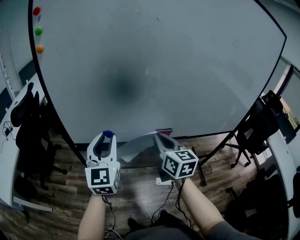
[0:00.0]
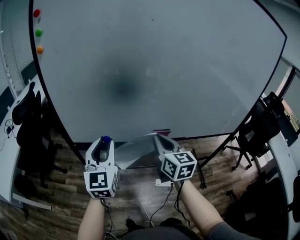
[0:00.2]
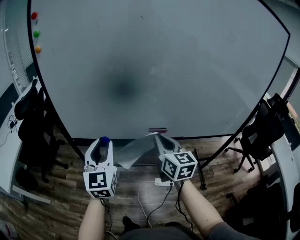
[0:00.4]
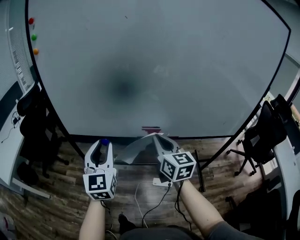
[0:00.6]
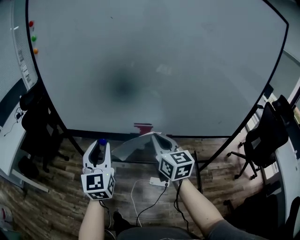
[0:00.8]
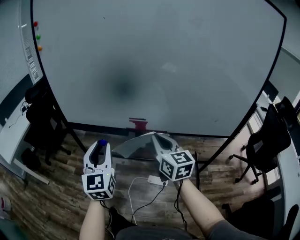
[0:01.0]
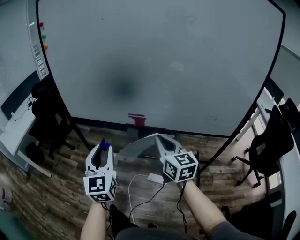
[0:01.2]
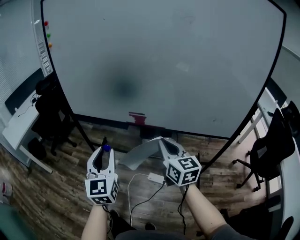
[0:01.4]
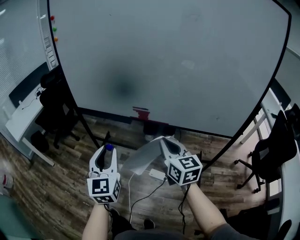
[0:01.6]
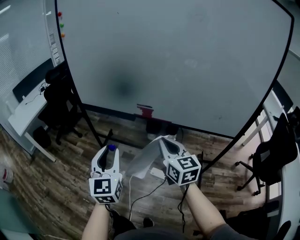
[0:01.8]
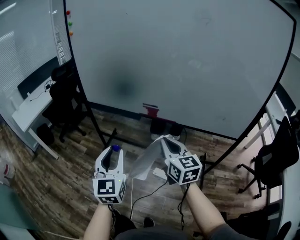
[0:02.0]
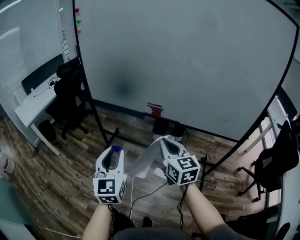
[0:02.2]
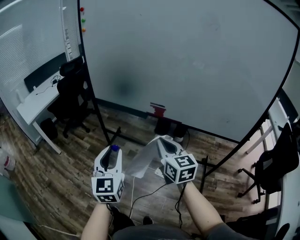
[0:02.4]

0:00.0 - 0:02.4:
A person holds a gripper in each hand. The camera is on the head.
0:00.0 - 0:01.2: The left gripper goes approximately 25 cm backward and to the right. Meanwhile the right gripper goes about 25 cm to the right and backward.
0:01.2 - 0:02.4: The left gripper shifts some 10 cm backward. Meanwhile the right gripper shifts approximately 10 cm backward and to the left.

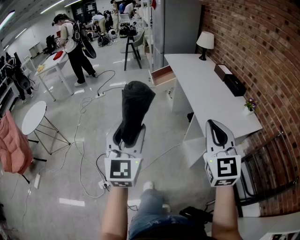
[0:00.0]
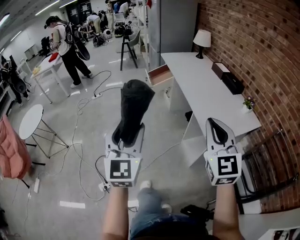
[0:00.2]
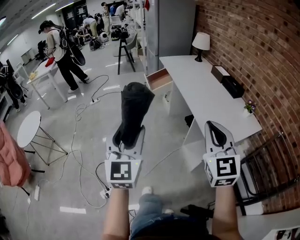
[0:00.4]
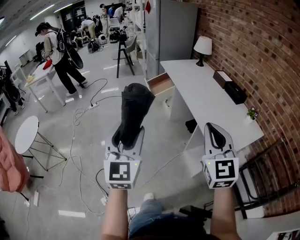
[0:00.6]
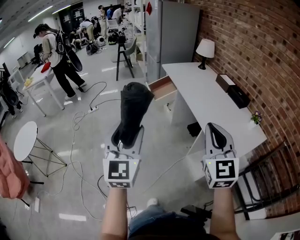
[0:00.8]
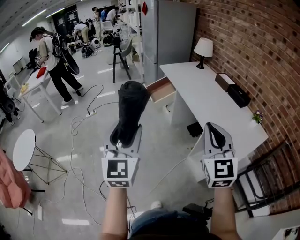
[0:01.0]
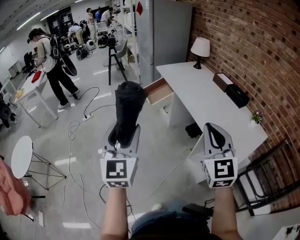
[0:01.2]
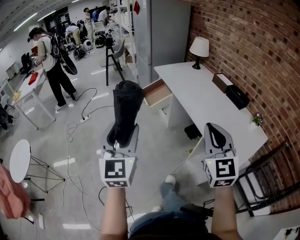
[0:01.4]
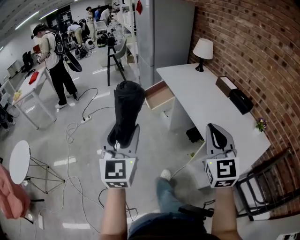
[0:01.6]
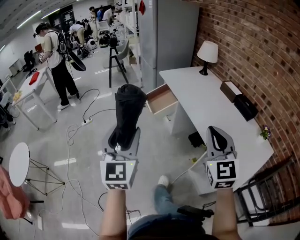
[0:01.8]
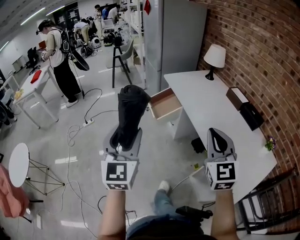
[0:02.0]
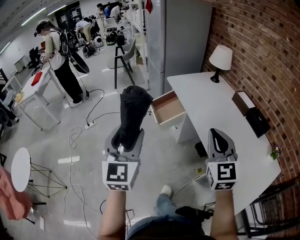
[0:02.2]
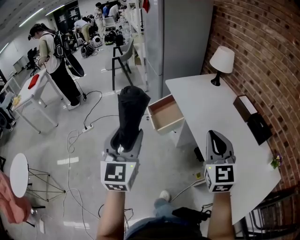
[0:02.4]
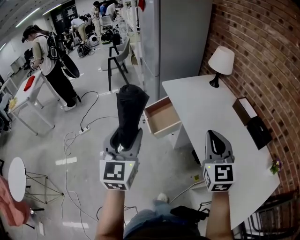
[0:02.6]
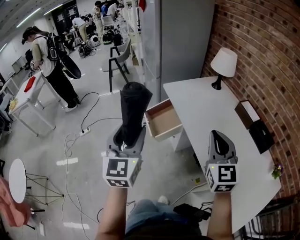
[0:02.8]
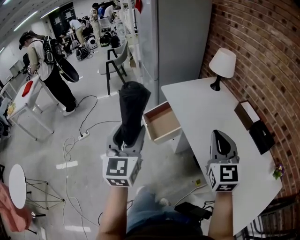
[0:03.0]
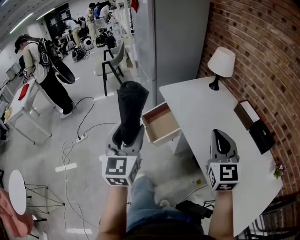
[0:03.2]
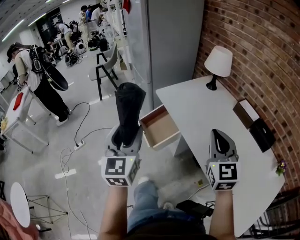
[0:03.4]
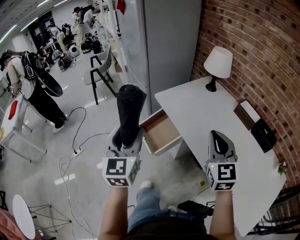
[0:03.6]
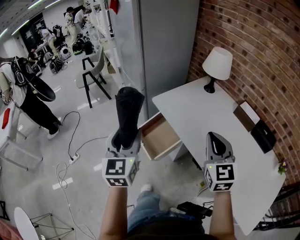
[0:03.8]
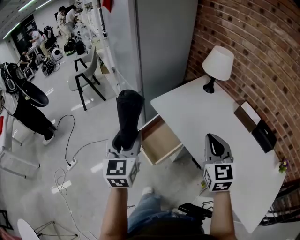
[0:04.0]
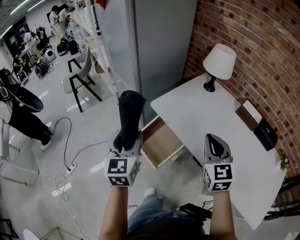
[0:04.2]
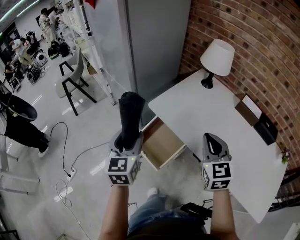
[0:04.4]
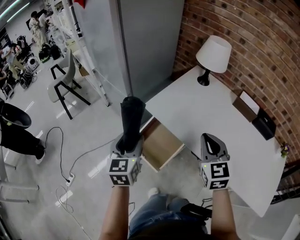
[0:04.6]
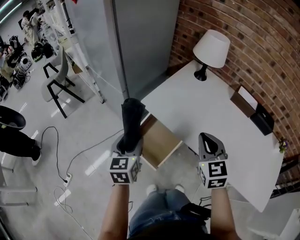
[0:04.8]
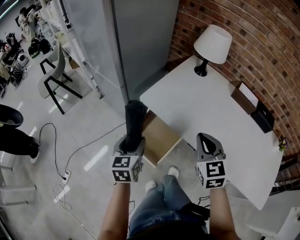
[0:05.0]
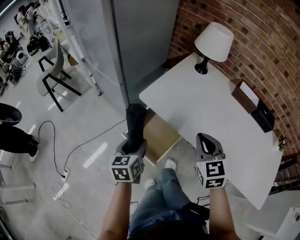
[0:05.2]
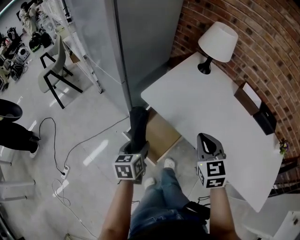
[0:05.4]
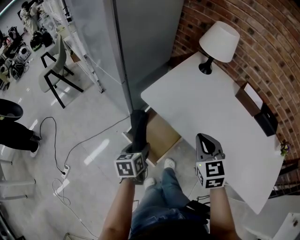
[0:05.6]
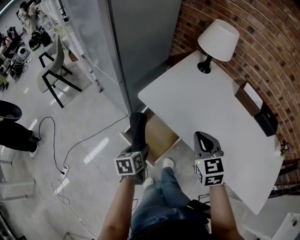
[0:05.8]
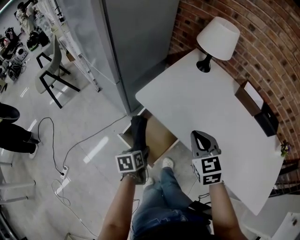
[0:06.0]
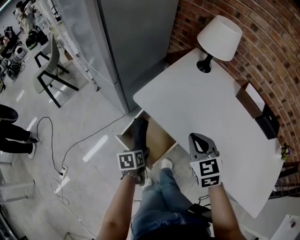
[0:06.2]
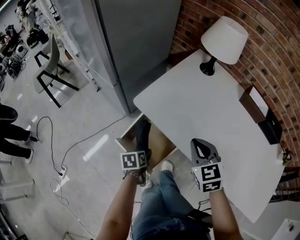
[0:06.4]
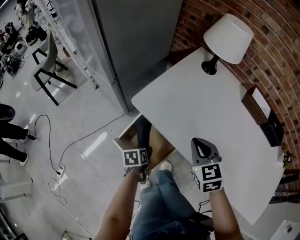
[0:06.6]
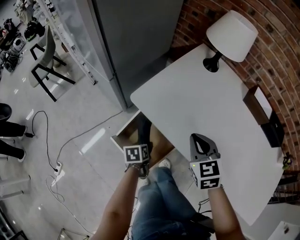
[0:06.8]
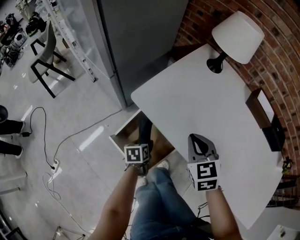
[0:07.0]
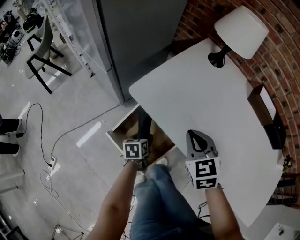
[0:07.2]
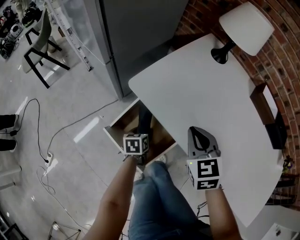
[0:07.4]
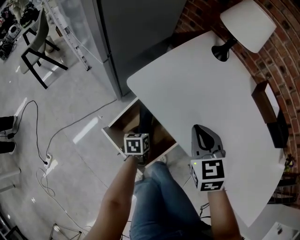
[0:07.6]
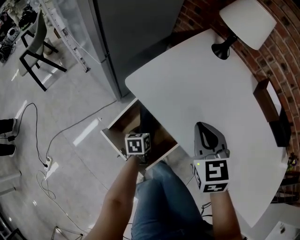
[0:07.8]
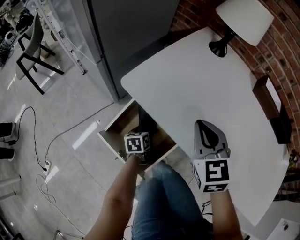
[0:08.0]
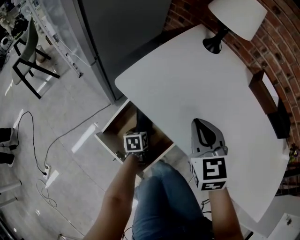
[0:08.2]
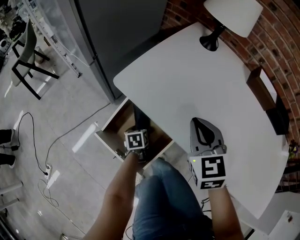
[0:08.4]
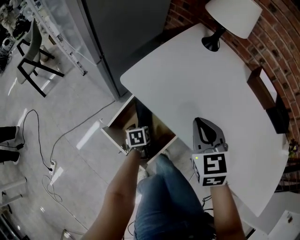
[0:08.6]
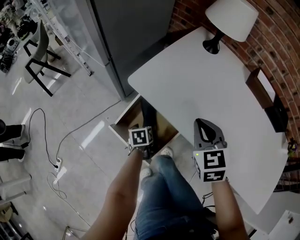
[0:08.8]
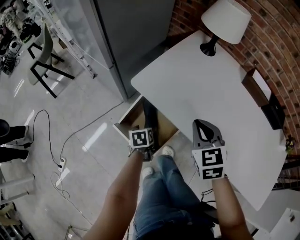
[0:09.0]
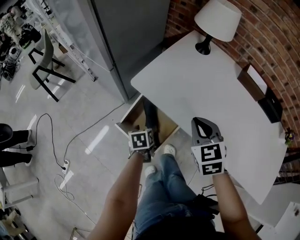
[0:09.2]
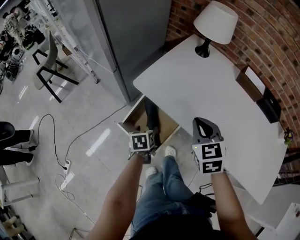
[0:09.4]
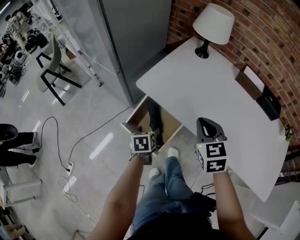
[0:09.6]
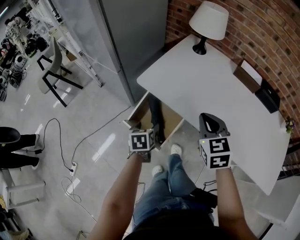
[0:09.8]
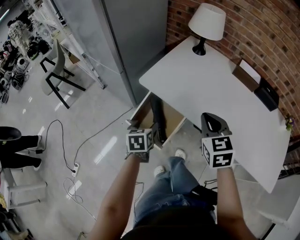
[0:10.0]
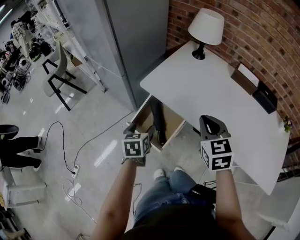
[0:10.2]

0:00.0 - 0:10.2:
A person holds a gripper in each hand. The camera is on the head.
0:00.0 - 0:01.4: Both grippers travel together forward and to the left, roughly 30 cm.
0:01.4 - 0:03.0: Both grippers are carried forward, roughly 40 cm.
0:03.0 - 0:04.4: The left gripper travels forward by some 35 cm, and rotates about 30 degrees. The right gripper shifts about 25 cm forward and to the left, and swivels approximately 20 degrees.
0:04.4 - 0:05.8: The left gripper heads downward, covering approximately 25 cm, and turns by about 40 degrees, while the right gripper is displaced downward by some 10 cm.
0:05.8 - 0:07.2: The left gripper moves downward and forward, roughly 20 cm; the right gripper is displaced downward and forward by some 10 cm.
0:07.2 - 0:08.8: The left gripper moves approximately 10 cm downward and comes back.
0:08.8 - 0:10.2: The right gripper is displaced backward and upward by approximately 15 cm. The left gripper is displaced upward and backward by about 25 cm, and changes its angle by approximately 20 degrees.

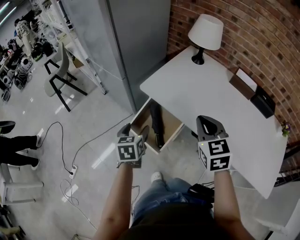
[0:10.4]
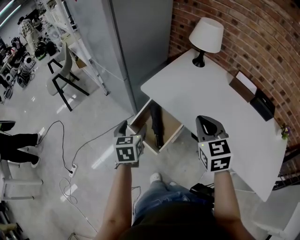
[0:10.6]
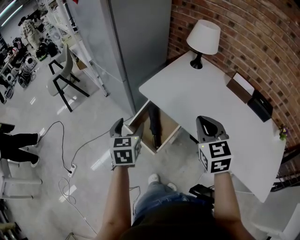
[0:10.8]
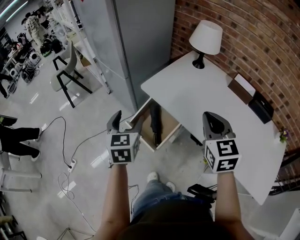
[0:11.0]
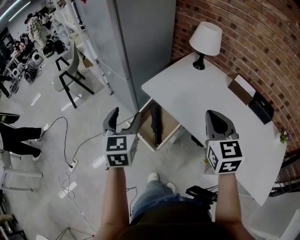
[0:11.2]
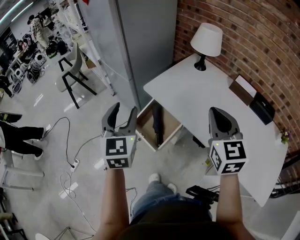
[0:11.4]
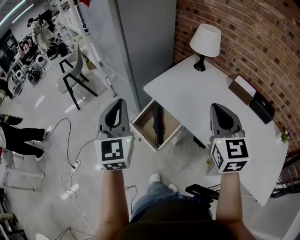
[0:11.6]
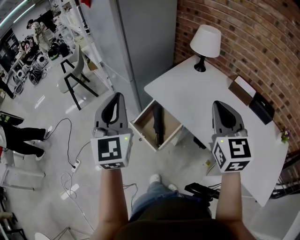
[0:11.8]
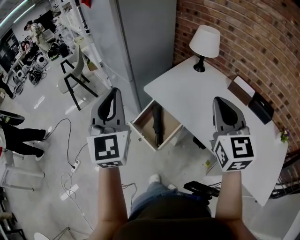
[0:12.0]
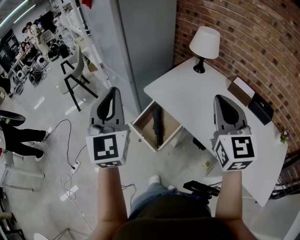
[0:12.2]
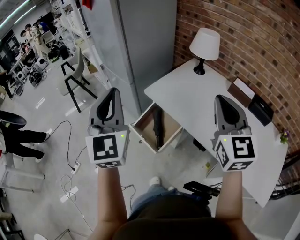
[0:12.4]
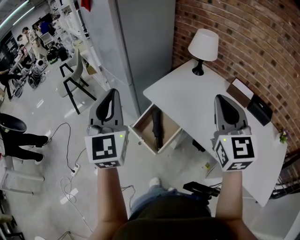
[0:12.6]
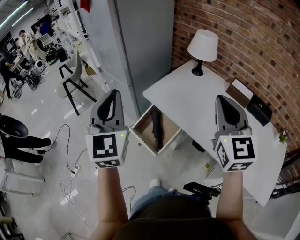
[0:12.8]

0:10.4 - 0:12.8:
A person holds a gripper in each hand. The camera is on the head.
0:10.4 - 0:11.6: The right gripper shifts about 15 cm upward; the left gripper travels upward by roughly 25 cm, angles its fingers upward, by roughly 40 degrees, and closes up.
0:11.6 - 0:12.8: The grippers both shift upward by approximately 5 cm.

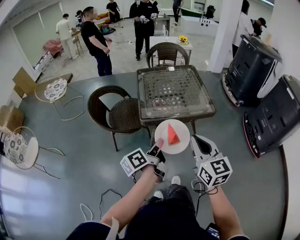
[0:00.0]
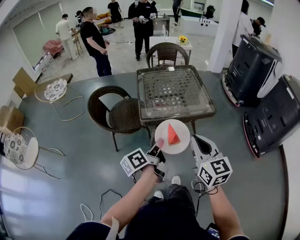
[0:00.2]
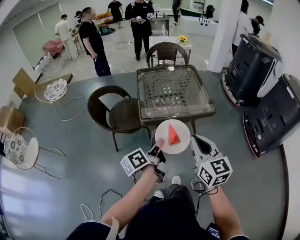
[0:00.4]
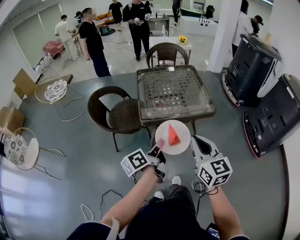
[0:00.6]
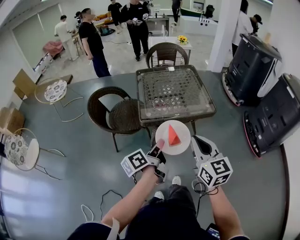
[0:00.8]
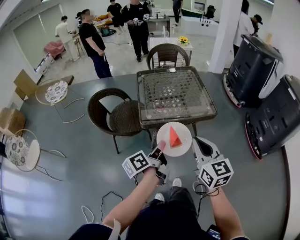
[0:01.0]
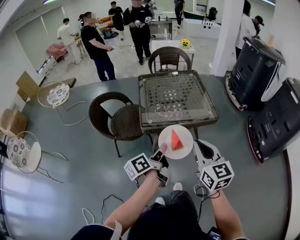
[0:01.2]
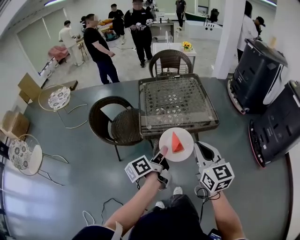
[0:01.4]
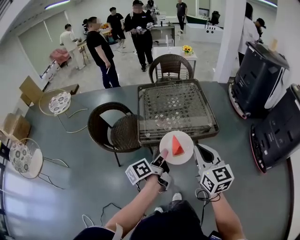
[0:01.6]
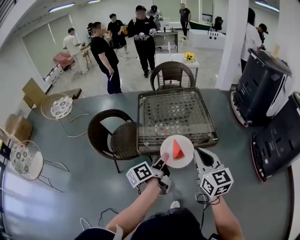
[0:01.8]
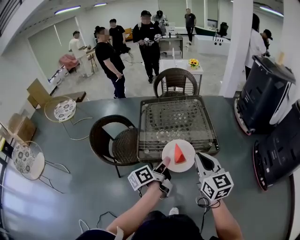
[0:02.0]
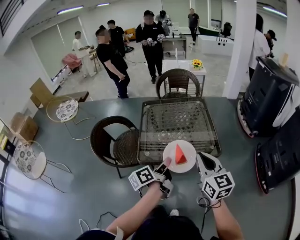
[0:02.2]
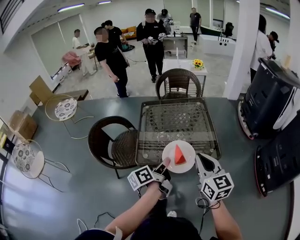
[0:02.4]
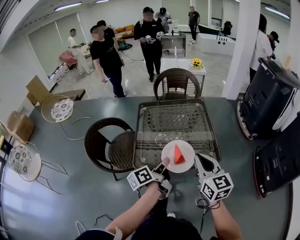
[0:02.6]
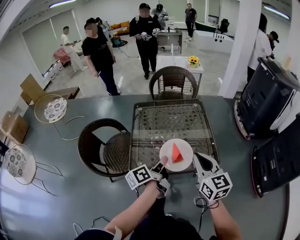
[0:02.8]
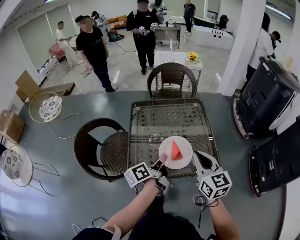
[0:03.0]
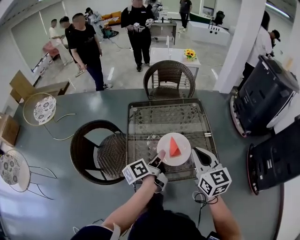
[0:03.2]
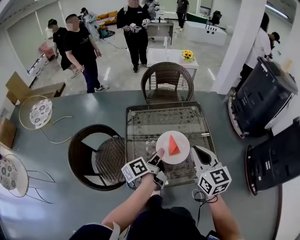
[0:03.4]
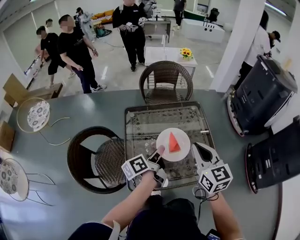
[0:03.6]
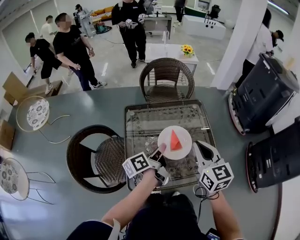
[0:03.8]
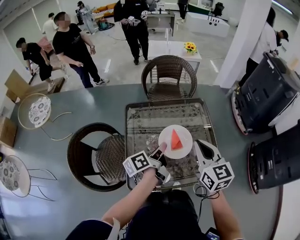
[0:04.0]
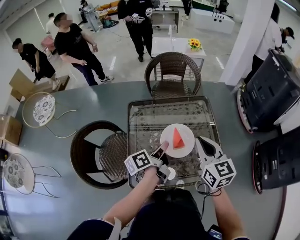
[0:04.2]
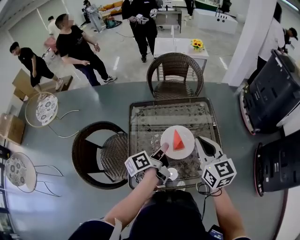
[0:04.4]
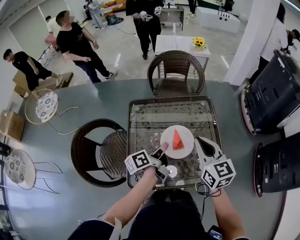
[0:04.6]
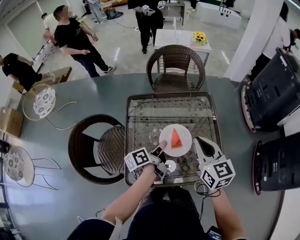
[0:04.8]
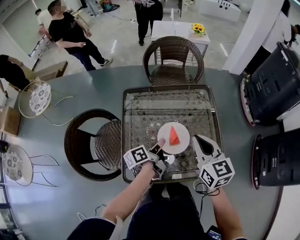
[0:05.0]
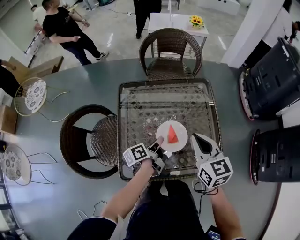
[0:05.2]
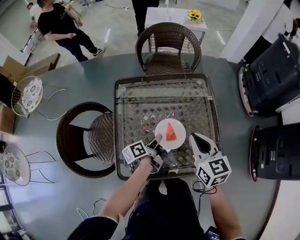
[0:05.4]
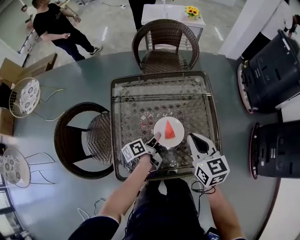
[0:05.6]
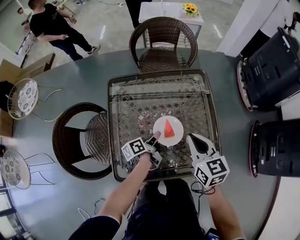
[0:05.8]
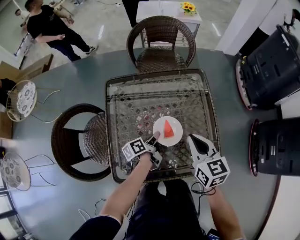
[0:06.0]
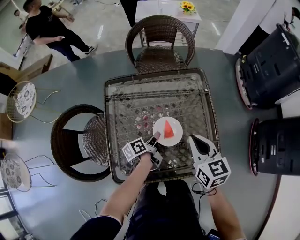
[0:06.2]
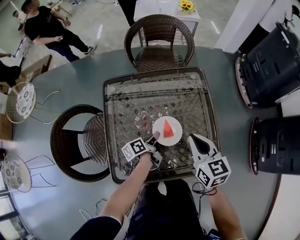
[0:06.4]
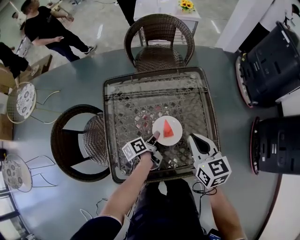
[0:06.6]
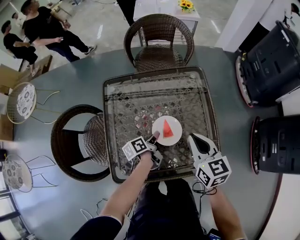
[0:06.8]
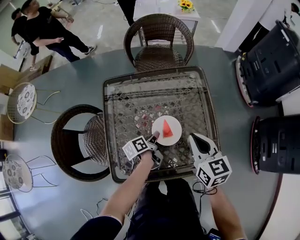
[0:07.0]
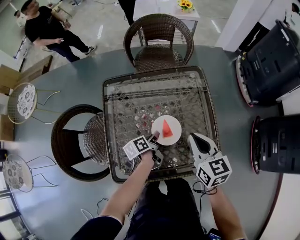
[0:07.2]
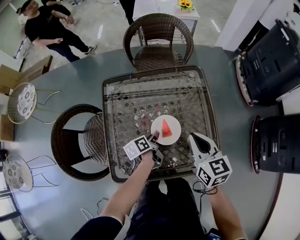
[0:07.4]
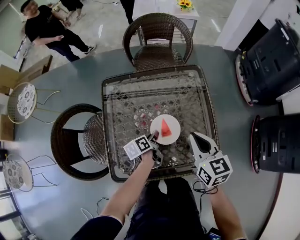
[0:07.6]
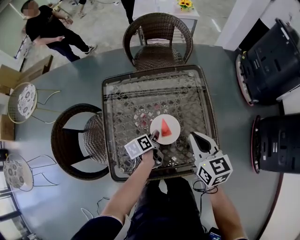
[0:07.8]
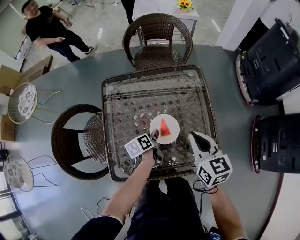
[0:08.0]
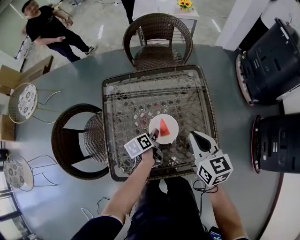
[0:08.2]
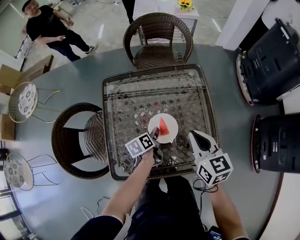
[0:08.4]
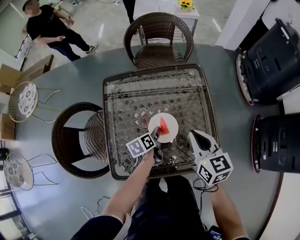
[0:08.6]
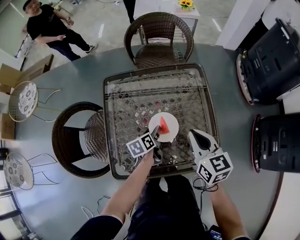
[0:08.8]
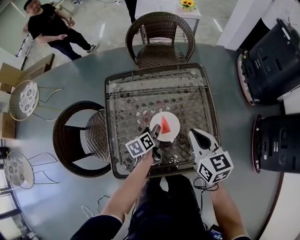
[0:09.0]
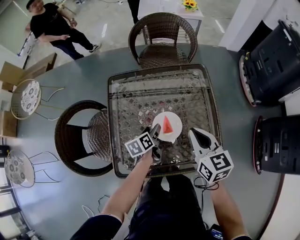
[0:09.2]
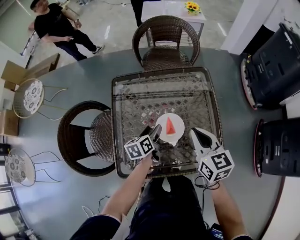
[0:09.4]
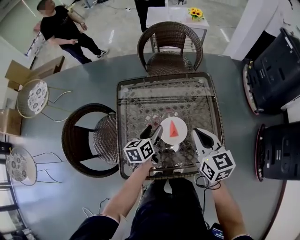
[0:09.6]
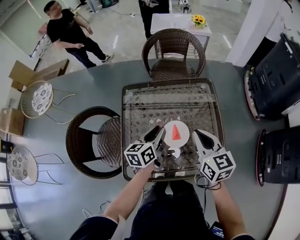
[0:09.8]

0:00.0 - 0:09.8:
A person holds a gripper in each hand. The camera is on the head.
0:00.0 - 0:01.4: Both grippers move forward, some 5 cm.
0:01.4 - 0:02.8: Both grippers move forward, some 20 cm.
0:02.8 - 0:04.2: The grippers both shift forward by about 20 cm.
0:04.2 - 0:05.6: The left gripper moves downward, about 20 cm, while the right gripper heads downward, covering roughly 10 cm.
0:05.6 - 0:07.0: There are only small adjustments of the grippers.
0:07.0 - 0:08.4: The left gripper opens its fingers.
0:08.4 - 0:09.8: The left gripper shifts about 15 cm upward, changes its angle by roughly 30 degrees, and opens, then closes once more. The right gripper shifts by some 5 cm.
